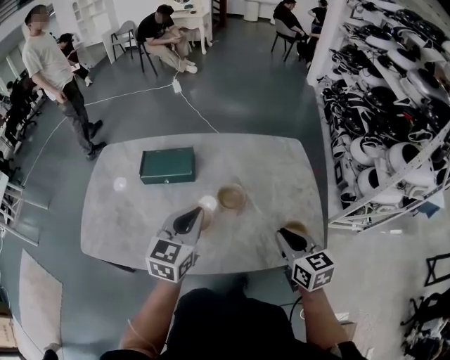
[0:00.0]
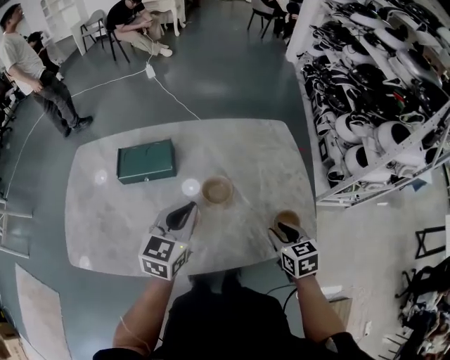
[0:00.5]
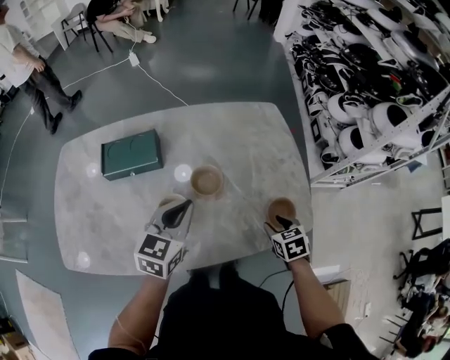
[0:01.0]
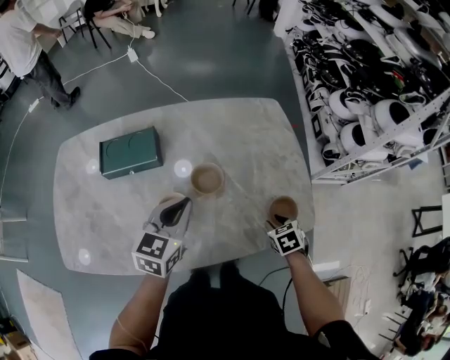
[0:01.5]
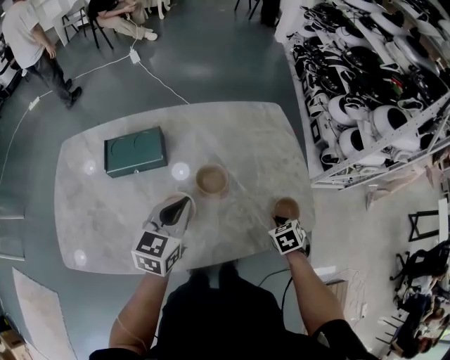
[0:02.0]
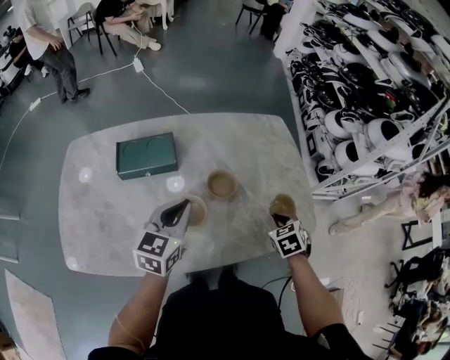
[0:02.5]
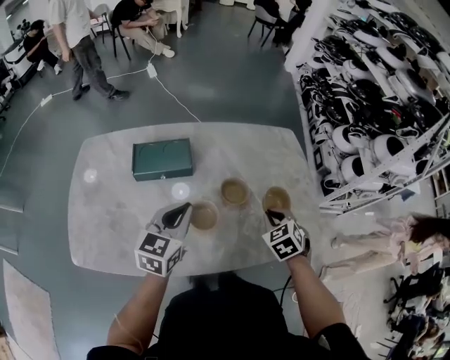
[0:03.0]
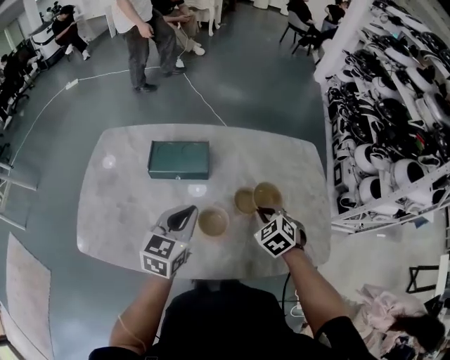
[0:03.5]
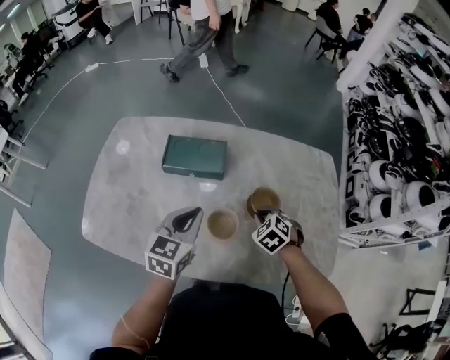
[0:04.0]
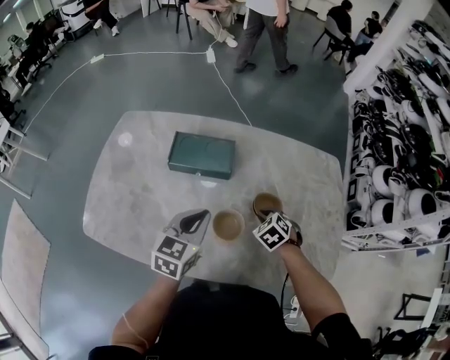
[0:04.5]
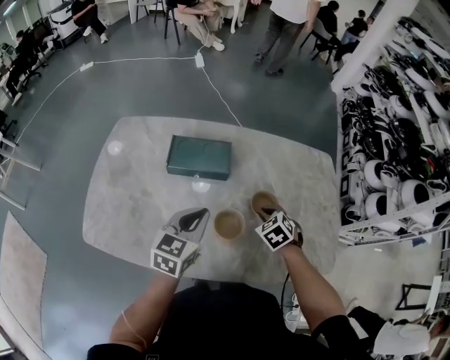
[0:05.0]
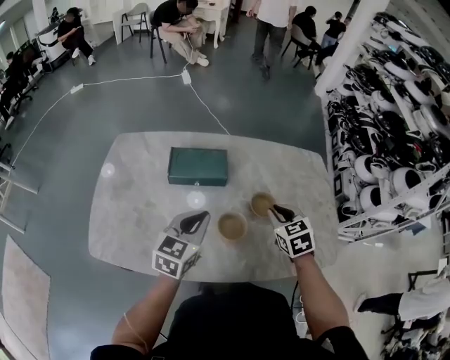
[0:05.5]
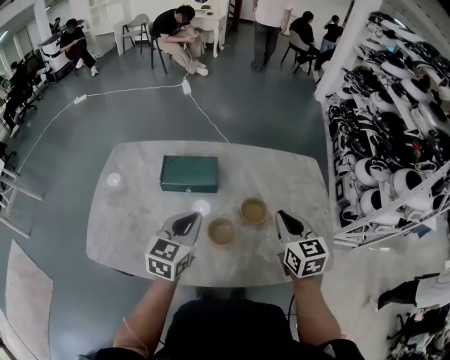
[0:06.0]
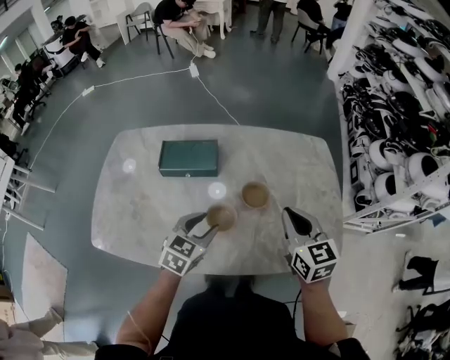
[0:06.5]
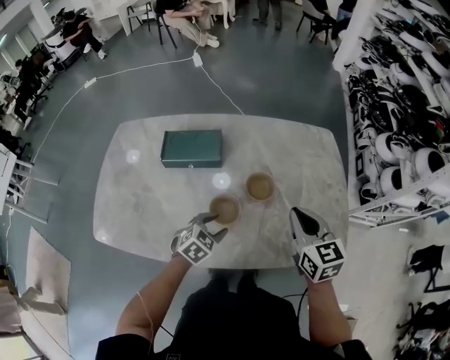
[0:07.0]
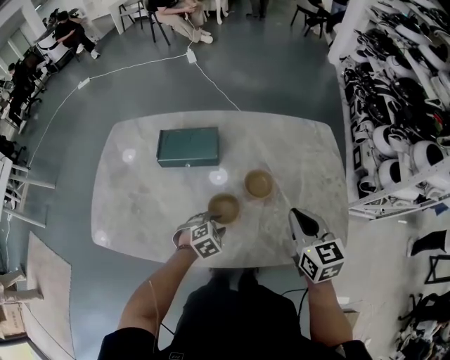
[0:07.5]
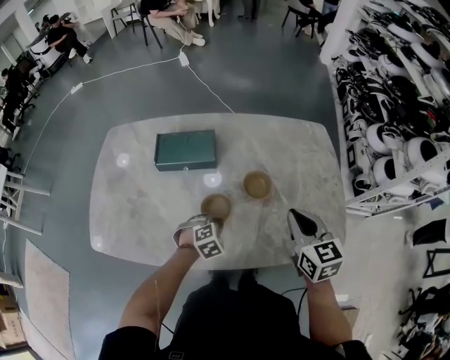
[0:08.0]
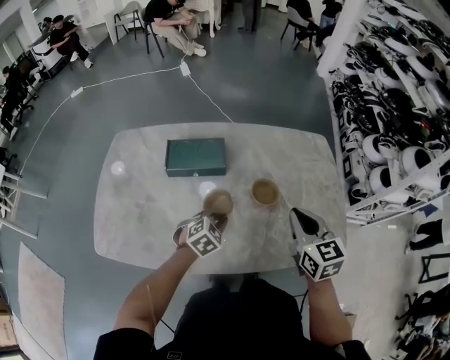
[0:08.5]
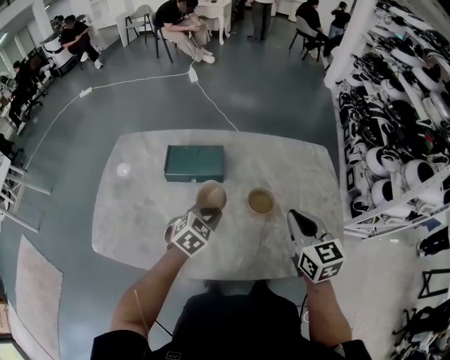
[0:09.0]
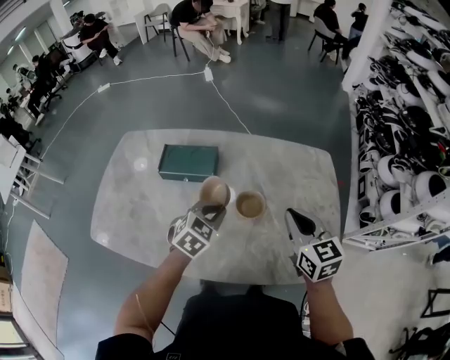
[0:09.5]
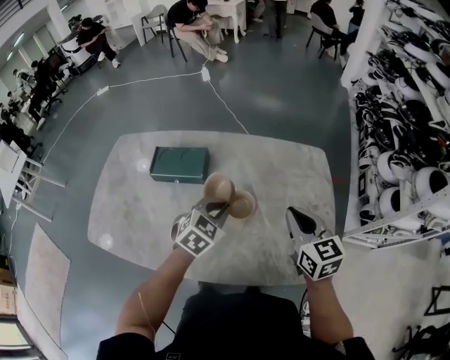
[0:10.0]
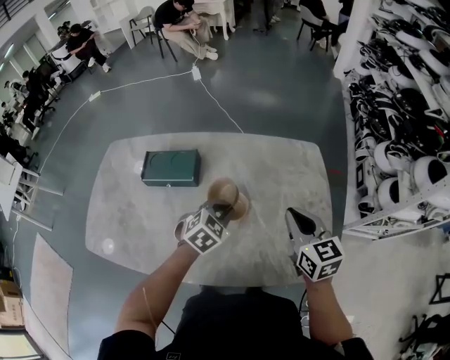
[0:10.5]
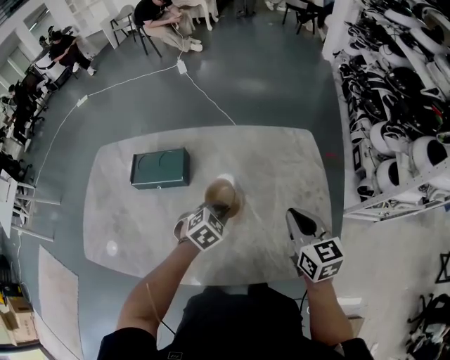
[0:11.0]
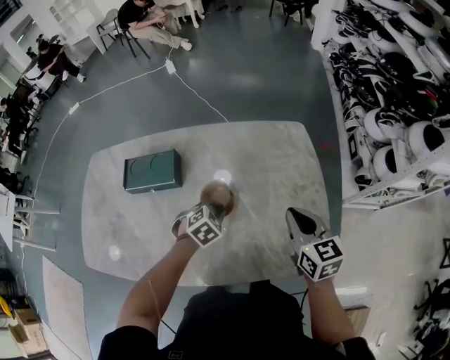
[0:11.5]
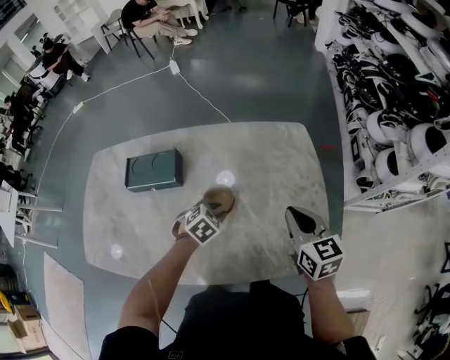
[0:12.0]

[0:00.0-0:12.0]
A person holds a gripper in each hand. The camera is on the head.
0:00.0 to 0:02.0: The left gripper travels downward and forward by approximately 10 cm. Meanwhile the right gripper is displaced downward by some 20 cm, points its fingers about 40 degrees further downward, and opens and closes again.
0:02.0 to 0:04.0: The right gripper travels to the left by approximately 25 cm, and rotates around the line of its fingers by approximately 40 degrees, counterclockwise from behind; the left gripper heads to the left, covering approximately 15 cm.
0:04.0 to 0:06.0: The left gripper moves approximately 5 cm. Meanwhile the right gripper heads upward, covering some 20 cm, and angles its fingers upward, by some 40 degrees.
0:06.0 to 0:08.0: The right gripper shifts by about 5 cm, while the left gripper heads downward, covering some 25 cm, angles its fingers downward, by roughly 40 degrees, and opens, then closes once more.
0:08.0 to 0:10.0: The left gripper travels upward, forward and to the right by some 25 cm, and changes its angle by some 30 degrees, while the right gripper shifts about 10 cm to the right and forward.
0:10.0 to 0:12.0: The left gripper is displaced downward and to the right by roughly 15 cm, changes its angle by some 20 degrees, and opens up, while the right gripper shifts approximately 10 cm to the right and downward.

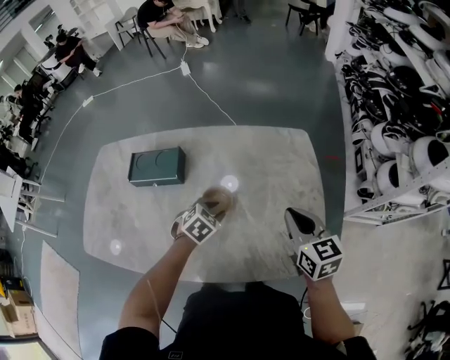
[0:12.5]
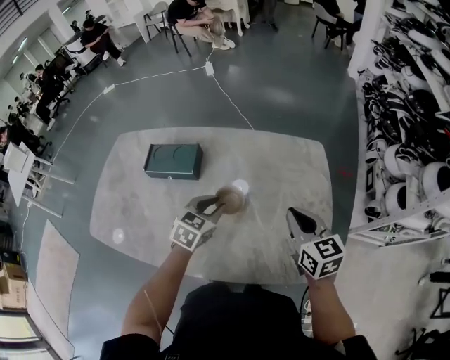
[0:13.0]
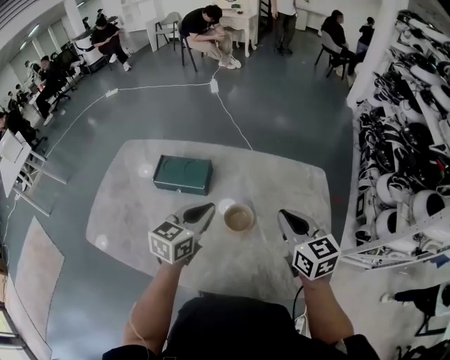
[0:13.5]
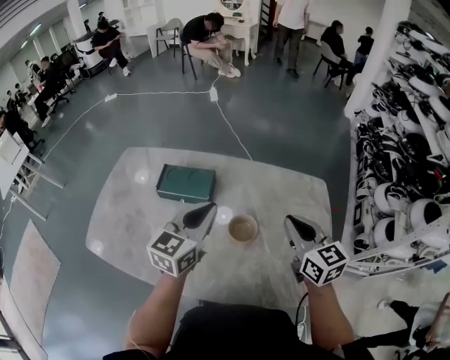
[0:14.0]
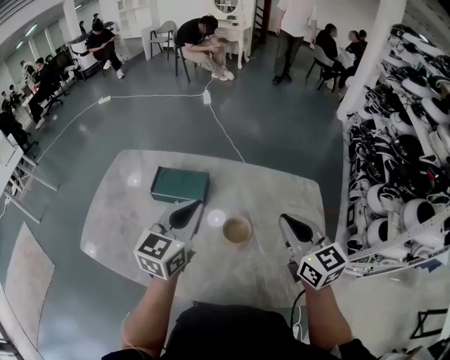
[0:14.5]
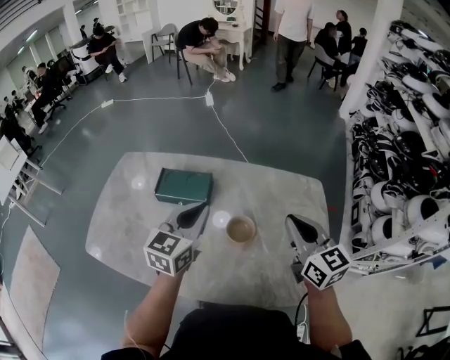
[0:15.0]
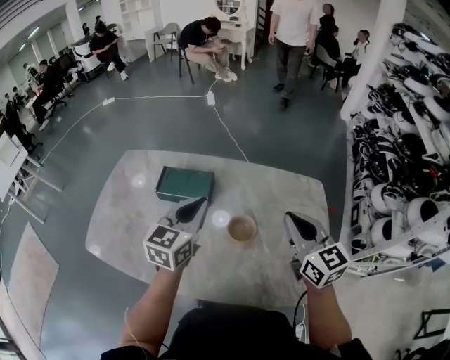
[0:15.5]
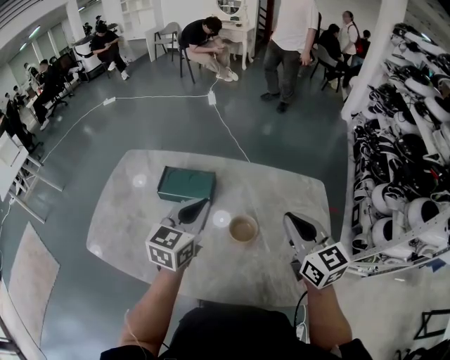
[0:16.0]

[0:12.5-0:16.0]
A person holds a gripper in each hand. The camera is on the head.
0:12.5 to 0:14.5: The right gripper is displaced to the left and upward by some 20 cm; the left gripper is displaced upward and to the left by about 35 cm, tips its fingers upward by roughly 50 degrees, and closes up.
0:14.5 to 0:16.0: The grippers make only small movements.

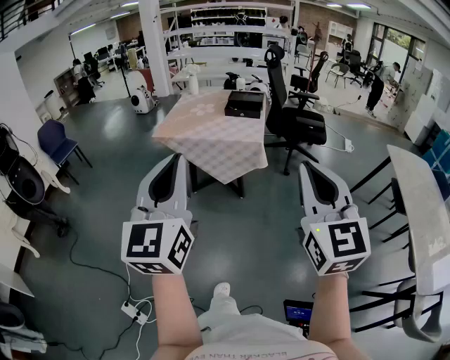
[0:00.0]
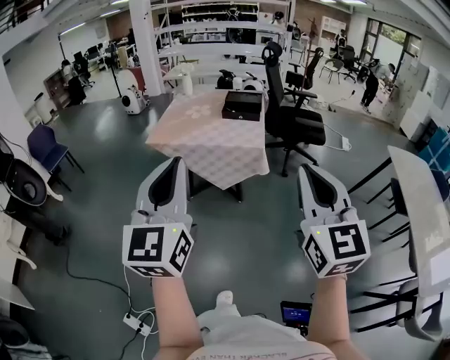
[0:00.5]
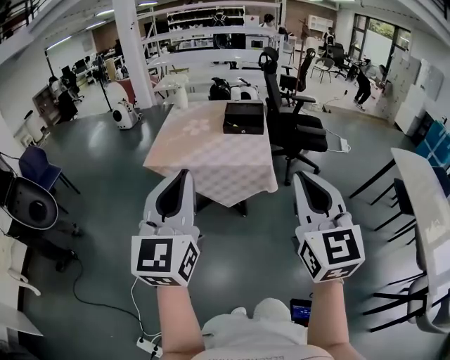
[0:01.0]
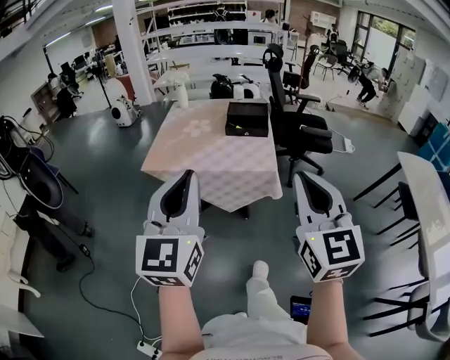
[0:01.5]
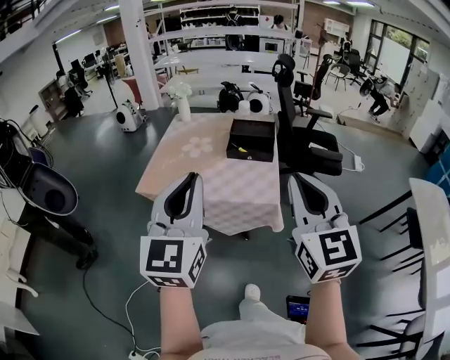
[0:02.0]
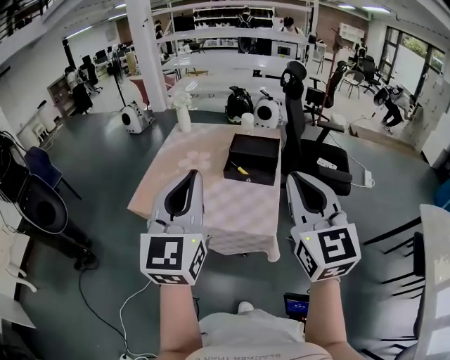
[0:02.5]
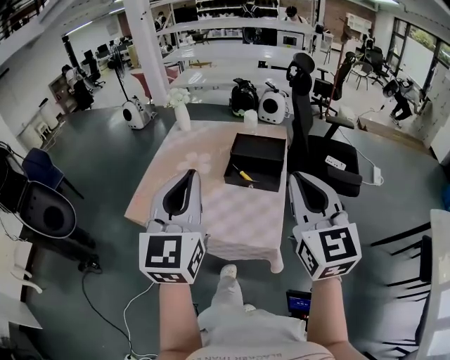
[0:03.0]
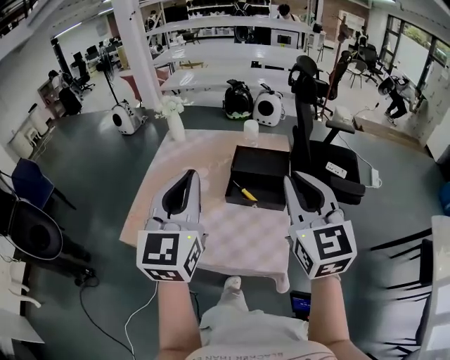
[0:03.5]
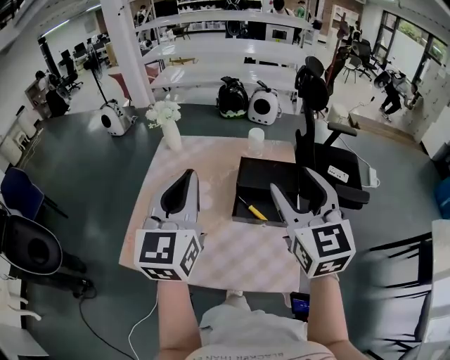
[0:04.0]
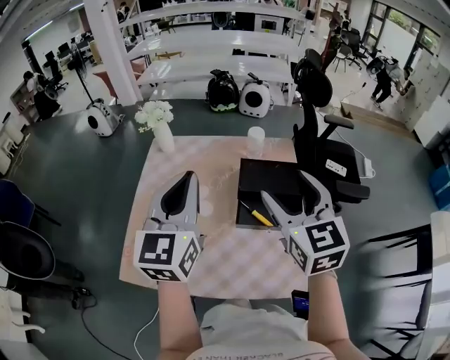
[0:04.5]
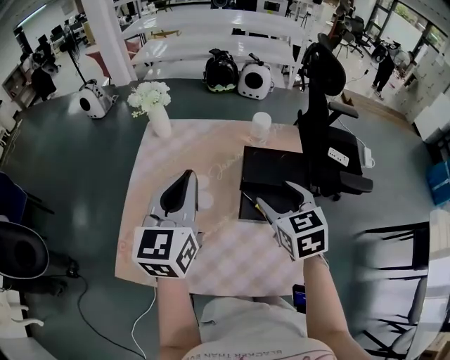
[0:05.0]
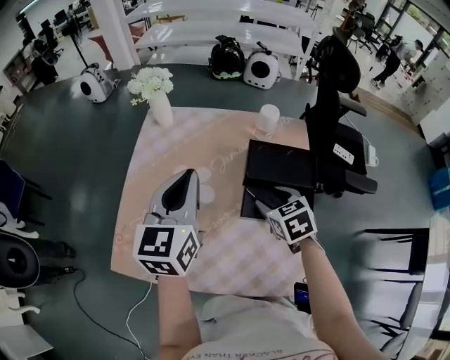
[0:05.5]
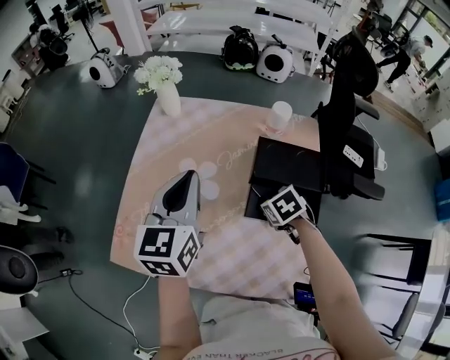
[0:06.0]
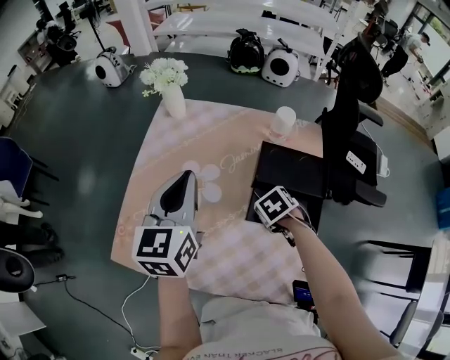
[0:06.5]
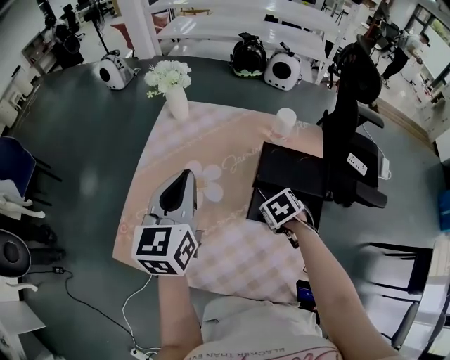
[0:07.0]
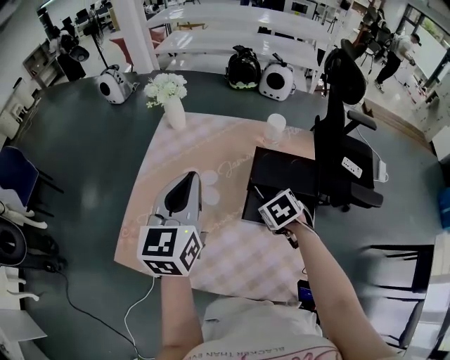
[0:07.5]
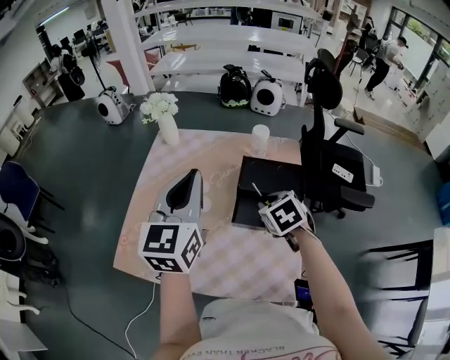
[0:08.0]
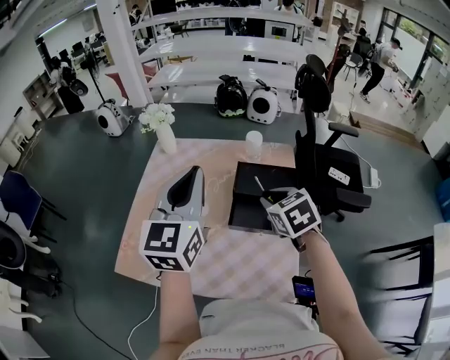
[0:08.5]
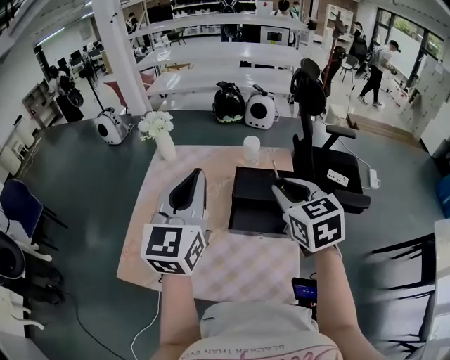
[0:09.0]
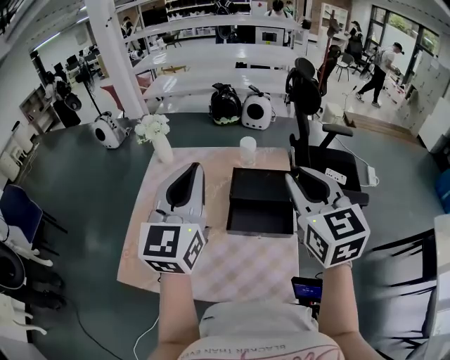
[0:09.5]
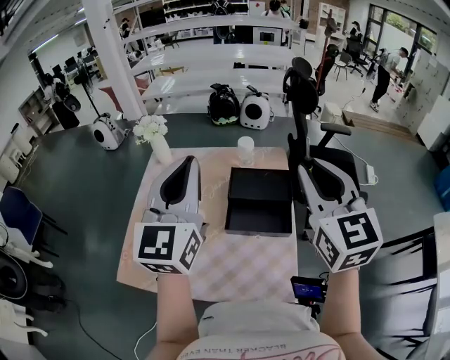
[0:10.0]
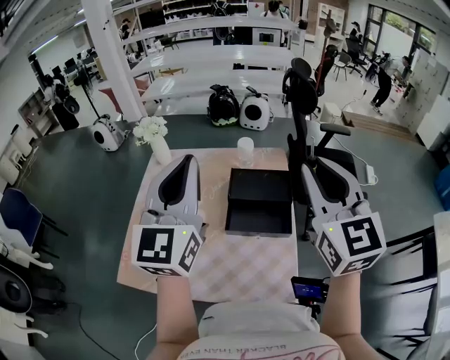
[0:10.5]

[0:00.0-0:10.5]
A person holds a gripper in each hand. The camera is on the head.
0:00.0 to 0:02.0: The two grippers go some 40 cm forward.
0:02.0 to 0:04.0: The two grippers travel together, forward, about 40 cm. The right gripper opens.
0:04.0 to 0:06.5: The left gripper travels downward by roughly 15 cm. Meanwhile the right gripper heads downward, covering some 40 cm, and angles its fingers downward, by approximately 70 degrees.
0:06.5 to 0:08.5: The right gripper is displaced upward by some 20 cm, and tips its fingers upward by roughly 40 degrees. Meanwhile the left gripper goes about 10 cm upward.
0:08.5 to 0:10.5: The left gripper goes approximately 10 cm upward; the right gripper shifts some 25 cm upward, and tilts its fingers approximately 40 degrees upward.
